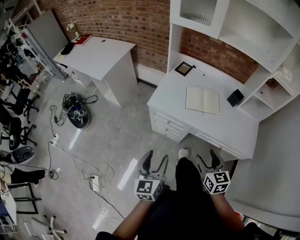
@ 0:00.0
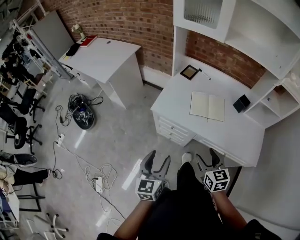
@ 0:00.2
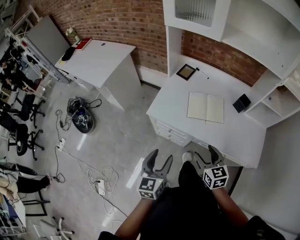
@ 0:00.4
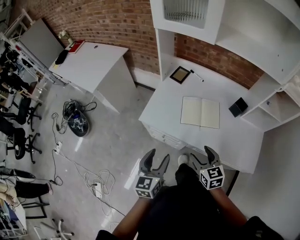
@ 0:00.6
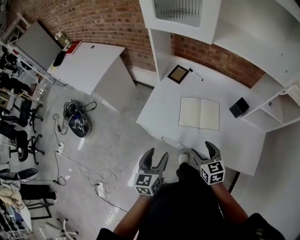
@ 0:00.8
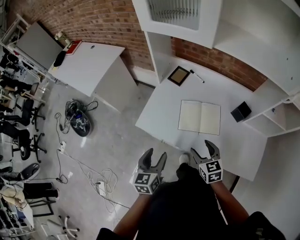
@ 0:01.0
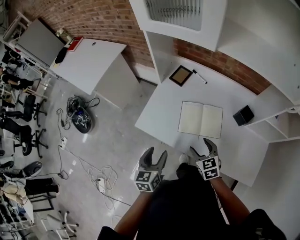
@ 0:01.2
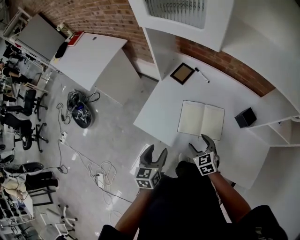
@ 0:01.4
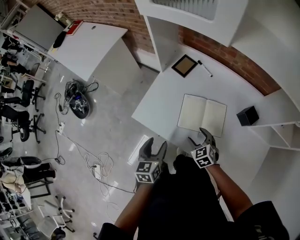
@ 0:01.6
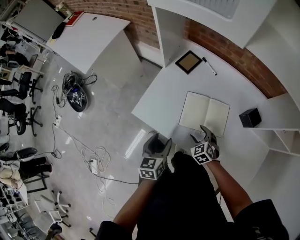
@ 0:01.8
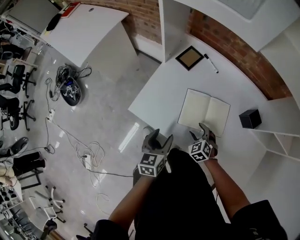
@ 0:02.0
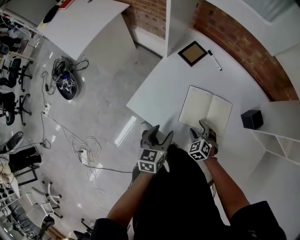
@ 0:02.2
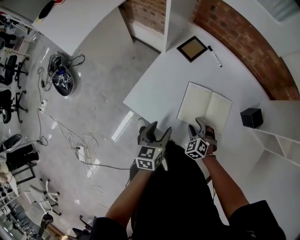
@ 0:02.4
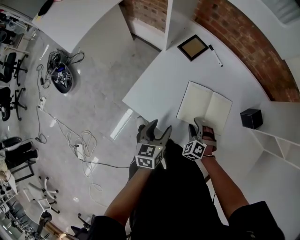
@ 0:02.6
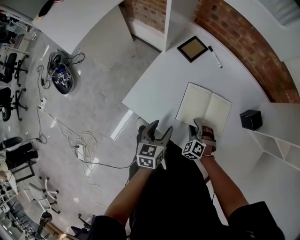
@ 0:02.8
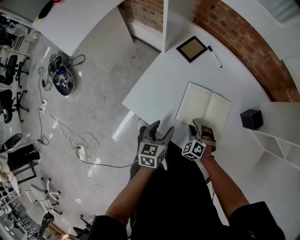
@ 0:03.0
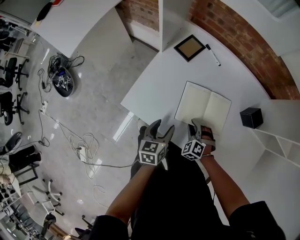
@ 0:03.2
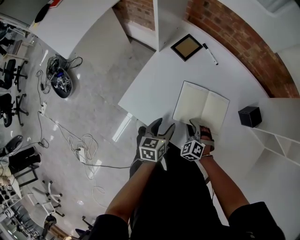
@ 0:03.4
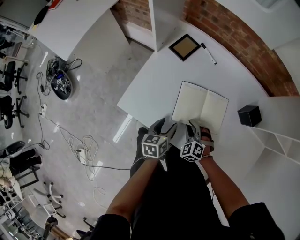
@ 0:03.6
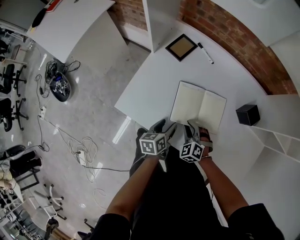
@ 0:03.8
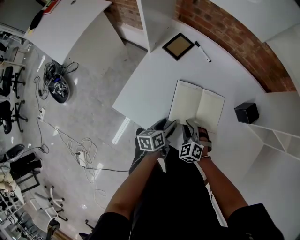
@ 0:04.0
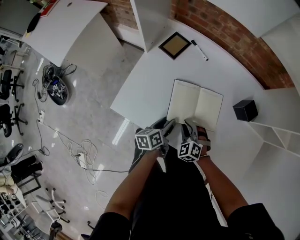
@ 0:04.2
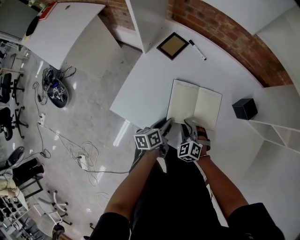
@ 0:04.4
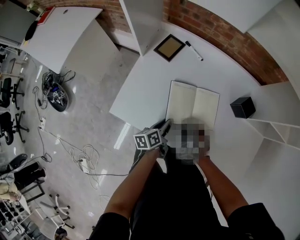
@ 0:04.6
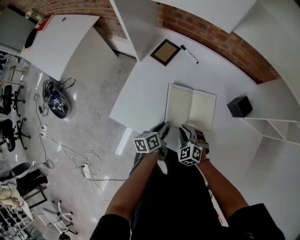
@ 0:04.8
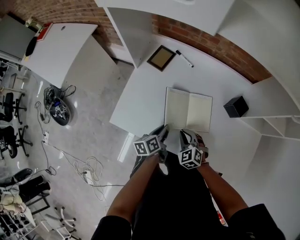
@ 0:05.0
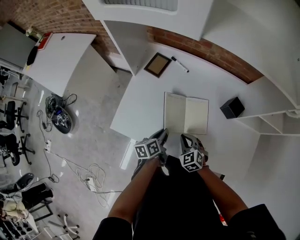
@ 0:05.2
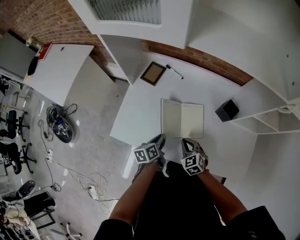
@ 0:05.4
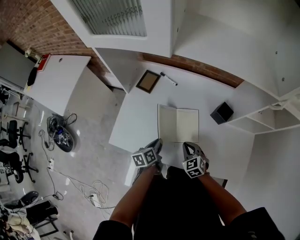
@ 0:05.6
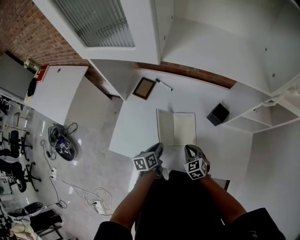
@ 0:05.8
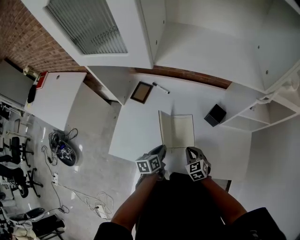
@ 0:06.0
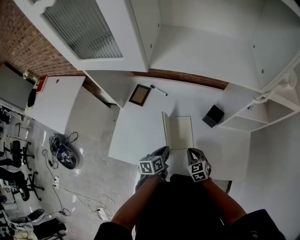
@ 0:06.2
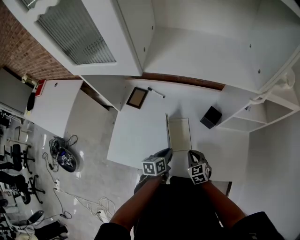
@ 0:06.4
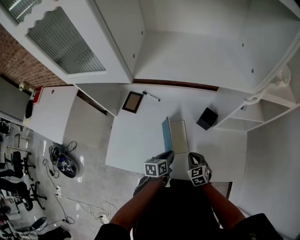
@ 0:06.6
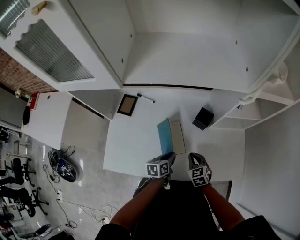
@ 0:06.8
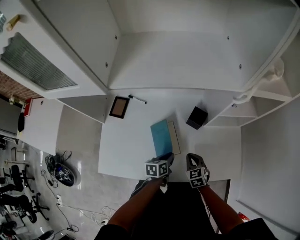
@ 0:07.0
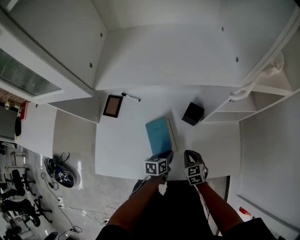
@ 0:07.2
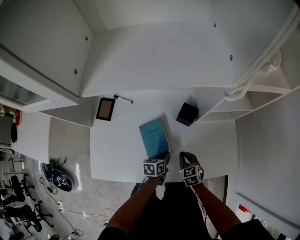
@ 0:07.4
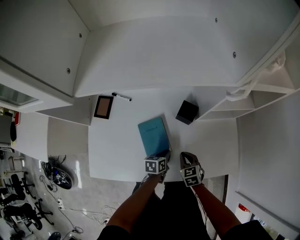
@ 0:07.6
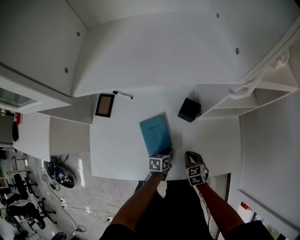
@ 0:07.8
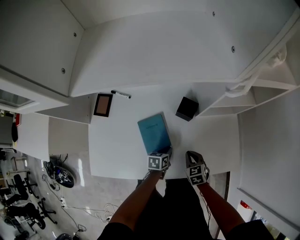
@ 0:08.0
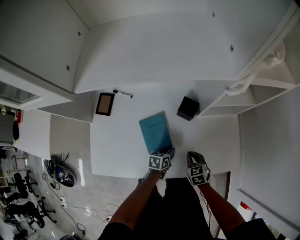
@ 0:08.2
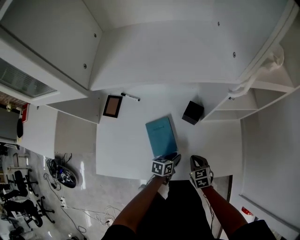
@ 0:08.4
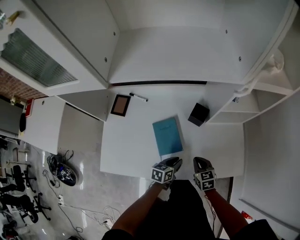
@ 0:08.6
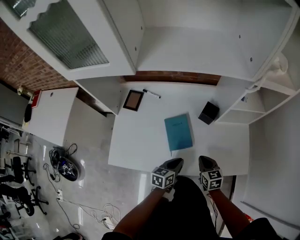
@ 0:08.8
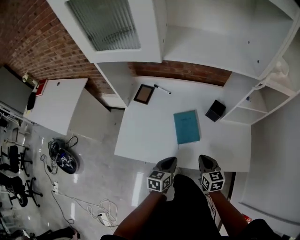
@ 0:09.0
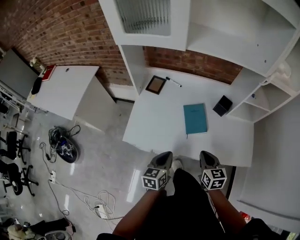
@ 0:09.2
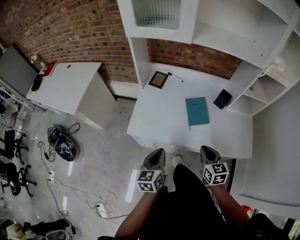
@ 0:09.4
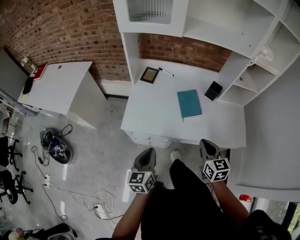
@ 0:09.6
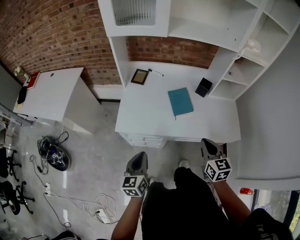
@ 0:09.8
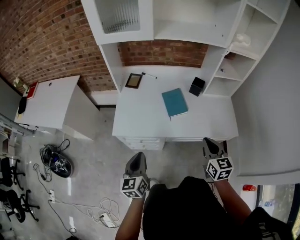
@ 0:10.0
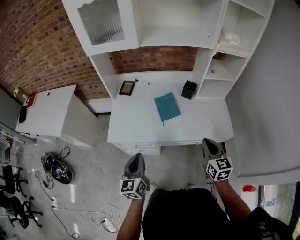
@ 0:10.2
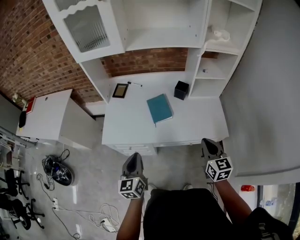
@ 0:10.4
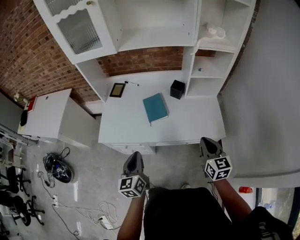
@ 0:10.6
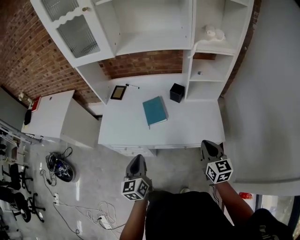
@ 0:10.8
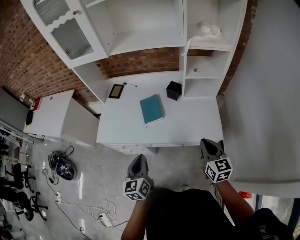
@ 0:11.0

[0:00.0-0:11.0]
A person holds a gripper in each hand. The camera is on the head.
0:00.0 to 0:01.6: The left gripper is displaced forward, to the right and downward by approximately 40 cm. Meanwhile the right gripper travels forward and downward by some 40 cm, and rotates about 40 degrees.
0:01.6 to 0:03.2: The right gripper shifts approximately 10 cm downward, changes its angle by approximately 30 degrees, and closes up. Meanwhile the left gripper shifts approximately 15 cm downward and forward.
0:03.2 to 0:04.8: The left gripper is displaced to the right by roughly 5 cm, changes its angle by approximately 30 degrees, and closes its fingers.
0:04.8 to 0:06.2: The grippers both shift to the right and upward by roughly 15 cm. The right gripper changes its angle by roughly 40 degrees. Meanwhile the left gripper turns by approximately 20 degrees.
0:06.2 to 0:07.8: The right gripper travels to the right and downward by roughly 15 cm, and rotates about 20 degrees. The left gripper is displaced to the right, downward and forward by approximately 20 cm, and turns by approximately 30 degrees.
0:07.8 to 0:09.4: The right gripper changes place by approximately 35 cm. Meanwhile the left gripper ends up about 50 cm from where it was, and swivels about 40 degrees.
0:09.4 to 0:11.0: The two grippers go roughly 25 cm to the right.

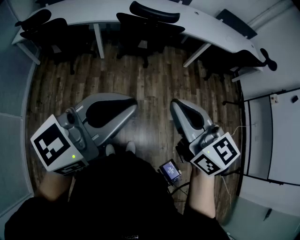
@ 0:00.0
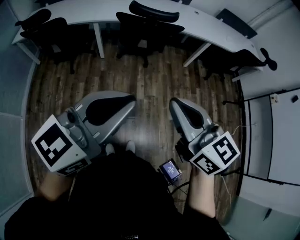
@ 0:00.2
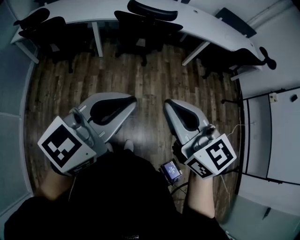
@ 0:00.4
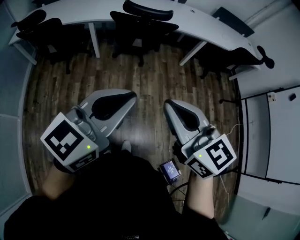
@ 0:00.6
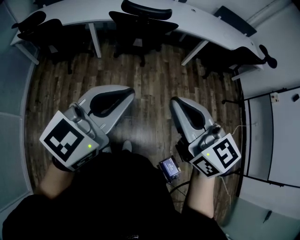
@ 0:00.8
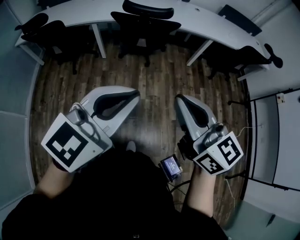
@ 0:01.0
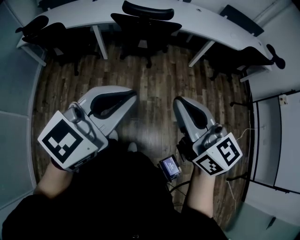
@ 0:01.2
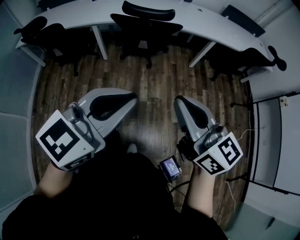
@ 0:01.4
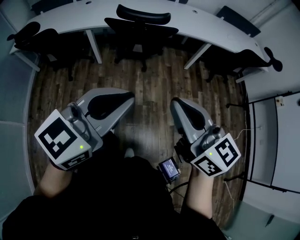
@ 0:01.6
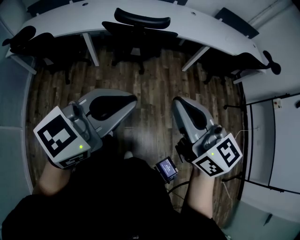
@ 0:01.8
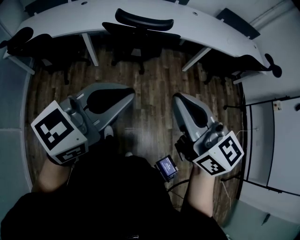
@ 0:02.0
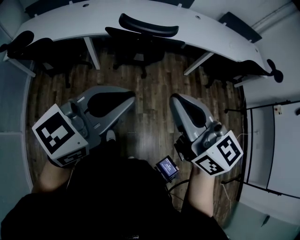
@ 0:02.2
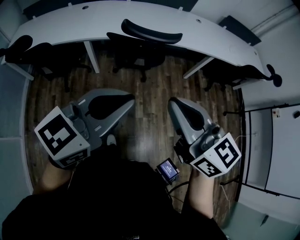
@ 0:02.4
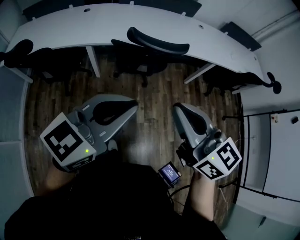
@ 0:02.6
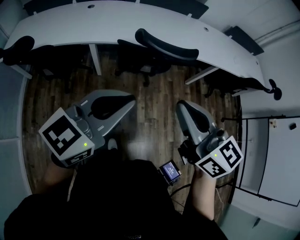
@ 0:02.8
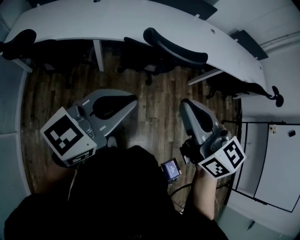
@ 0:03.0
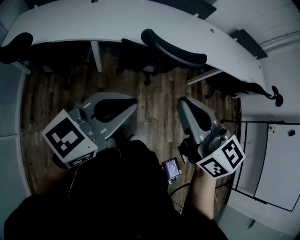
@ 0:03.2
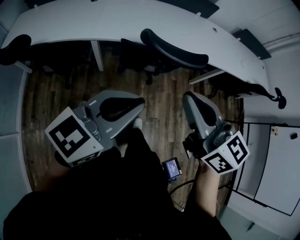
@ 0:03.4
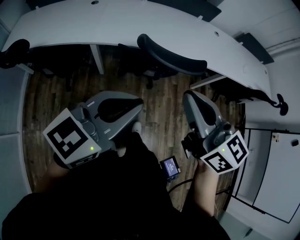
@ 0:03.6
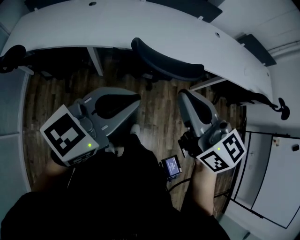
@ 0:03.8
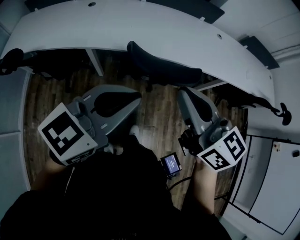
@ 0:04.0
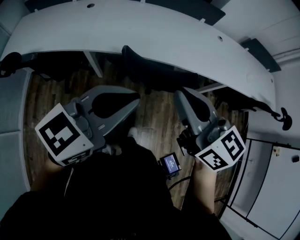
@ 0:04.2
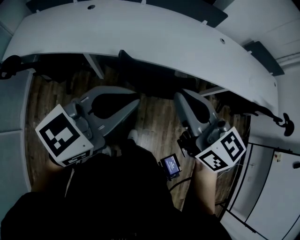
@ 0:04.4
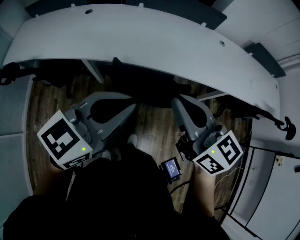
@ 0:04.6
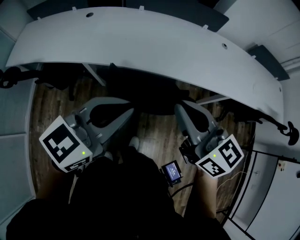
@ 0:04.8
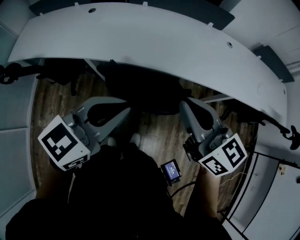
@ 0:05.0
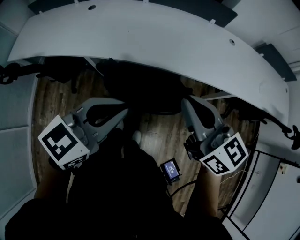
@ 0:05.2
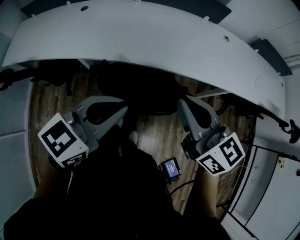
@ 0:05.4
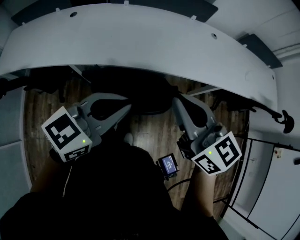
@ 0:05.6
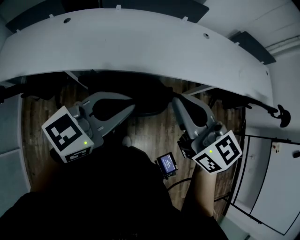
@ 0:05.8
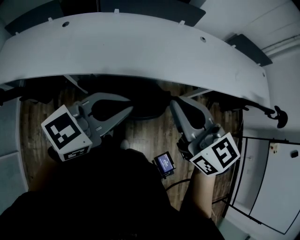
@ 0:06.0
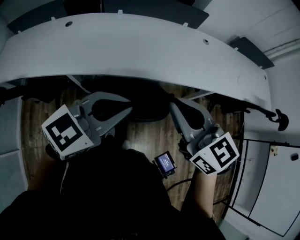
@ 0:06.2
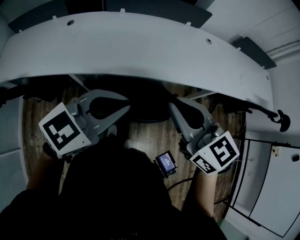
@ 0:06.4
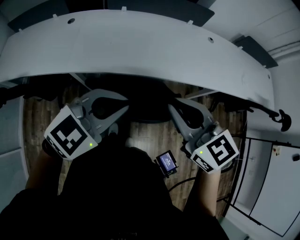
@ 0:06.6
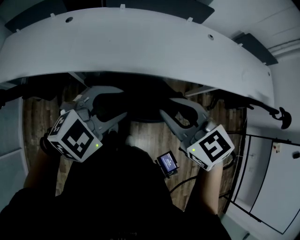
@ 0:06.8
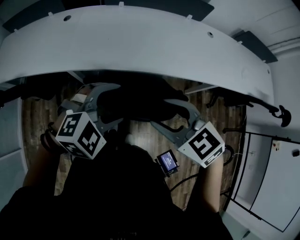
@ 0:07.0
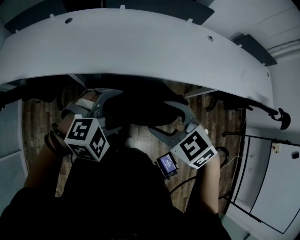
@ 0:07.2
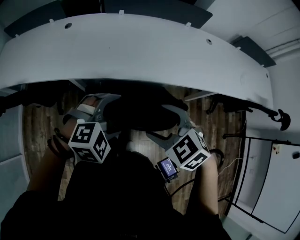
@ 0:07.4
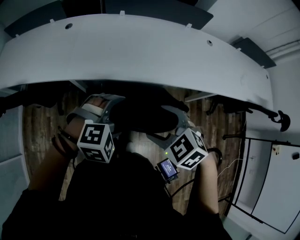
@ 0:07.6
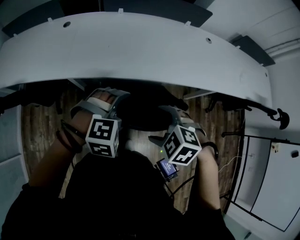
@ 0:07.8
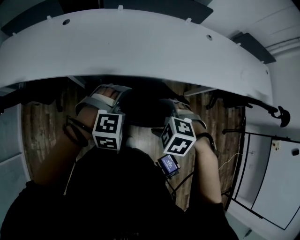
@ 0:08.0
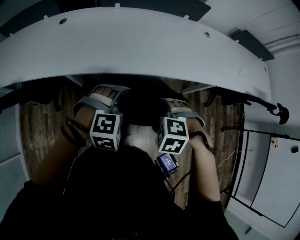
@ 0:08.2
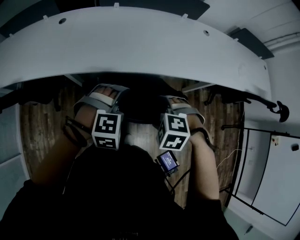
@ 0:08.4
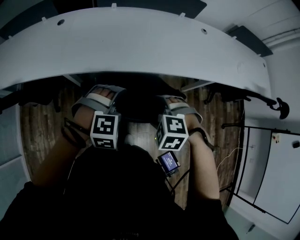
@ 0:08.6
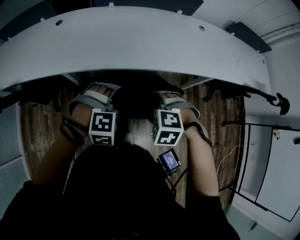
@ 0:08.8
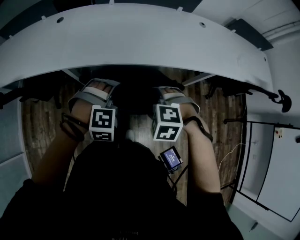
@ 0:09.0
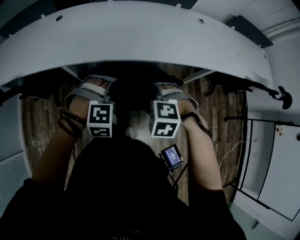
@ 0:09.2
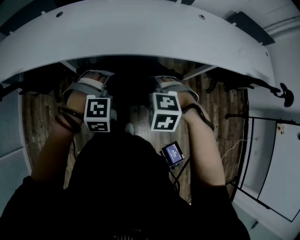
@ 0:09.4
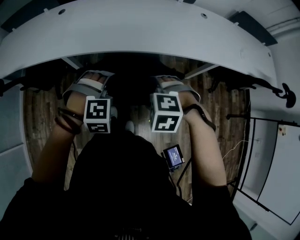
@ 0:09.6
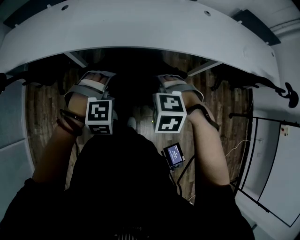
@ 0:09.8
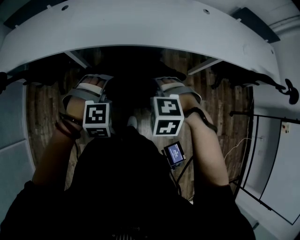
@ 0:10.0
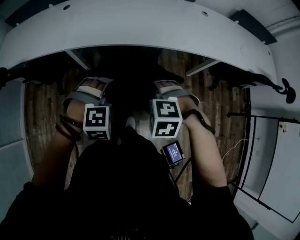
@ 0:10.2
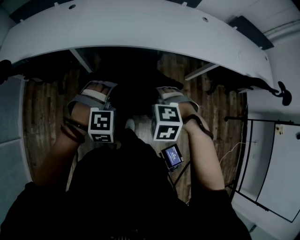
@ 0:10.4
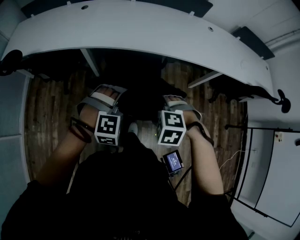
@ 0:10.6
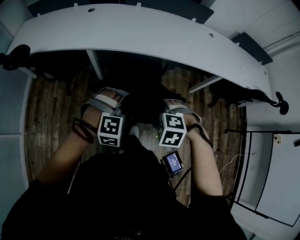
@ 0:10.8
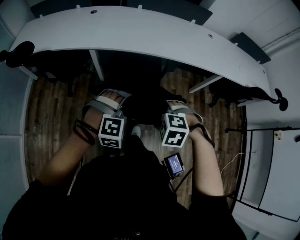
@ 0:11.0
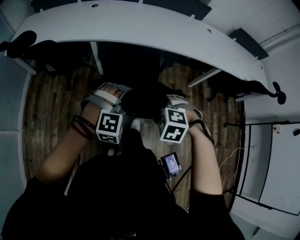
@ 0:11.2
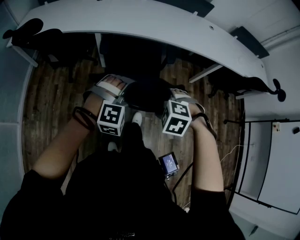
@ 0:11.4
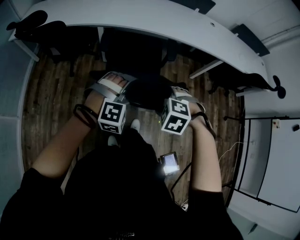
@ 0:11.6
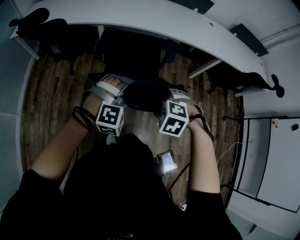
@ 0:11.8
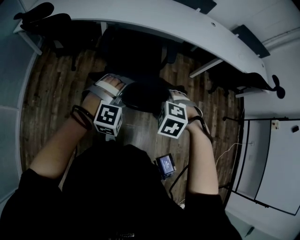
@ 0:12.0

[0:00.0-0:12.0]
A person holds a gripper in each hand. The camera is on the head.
0:00.0 to 0:01.6: Both grippers move forward and to the right, about 10 cm.
0:01.6 to 0:03.0: Both grippers move forward and to the left, some 35 cm.
0:03.0 to 0:04.4: The left gripper travels forward and to the right by roughly 25 cm. The right gripper shifts approximately 25 cm forward.
0:04.4 to 0:06.0: The left gripper moves forward and to the right, approximately 10 cm, while the right gripper travels to the right and forward by some 10 cm.
0:06.0 to 0:07.6: The two grippers go roughly 20 cm downward and to the left. The left gripper tilts its fingers roughly 40 degrees downward, and opens, while the right gripper tilts its fingers roughly 40 degrees downward, and opens its fingers.
0:07.6 to 0:09.0: Both grippers move downward, approximately 5 cm. The right gripper changes its angle by approximately 30 degrees; the left gripper rotates approximately 20 degrees.
0:09.0 to 0:10.4: Both grippers move backward, some 15 cm.
0:10.4 to 0:12.0: The grippers both shift backward by roughly 30 cm.
